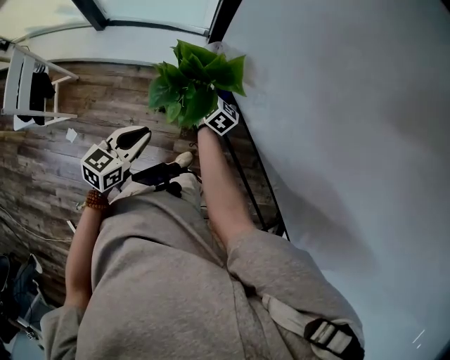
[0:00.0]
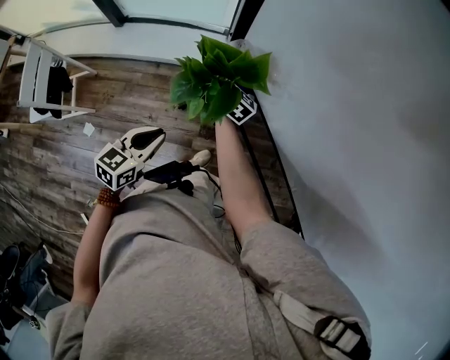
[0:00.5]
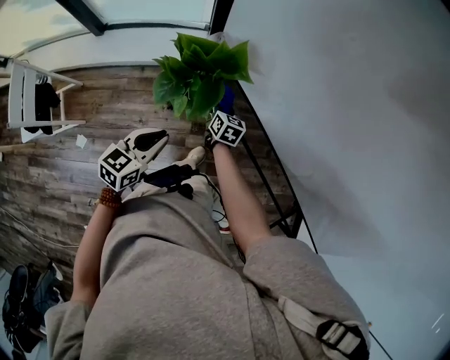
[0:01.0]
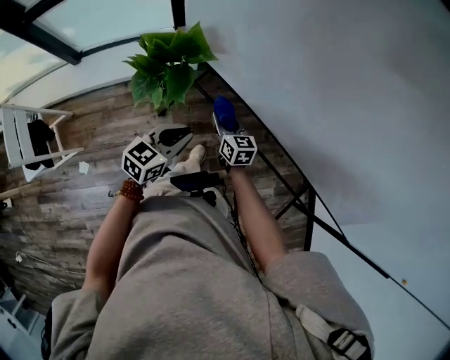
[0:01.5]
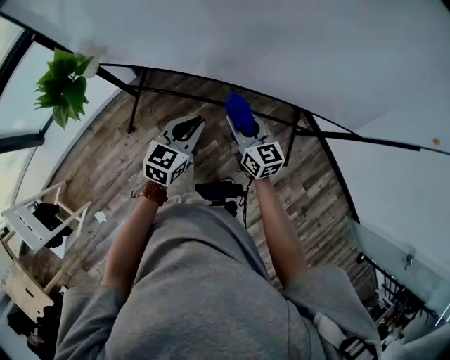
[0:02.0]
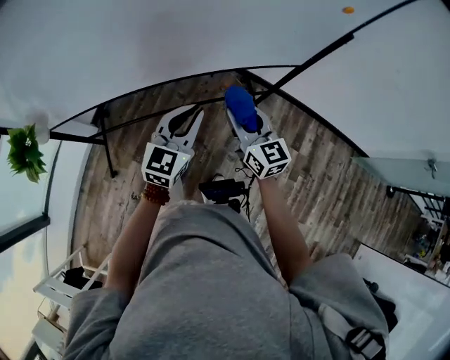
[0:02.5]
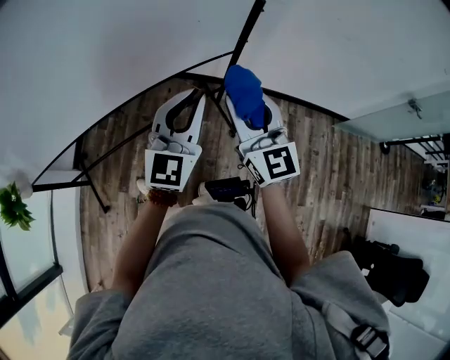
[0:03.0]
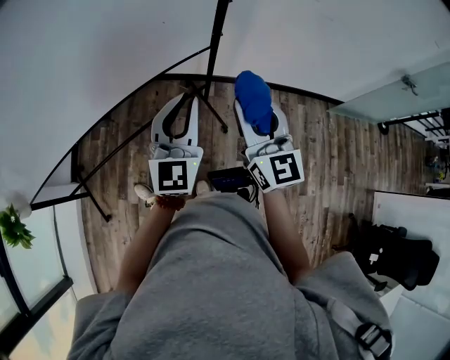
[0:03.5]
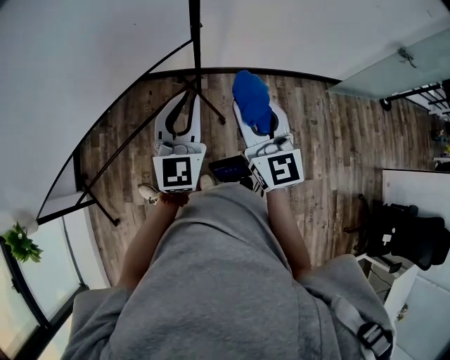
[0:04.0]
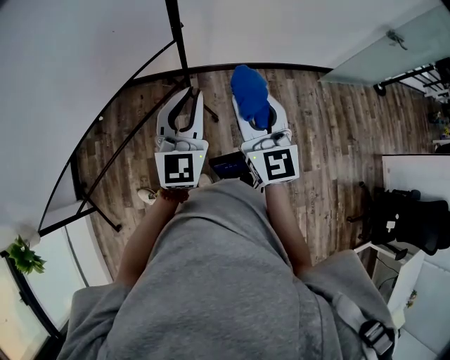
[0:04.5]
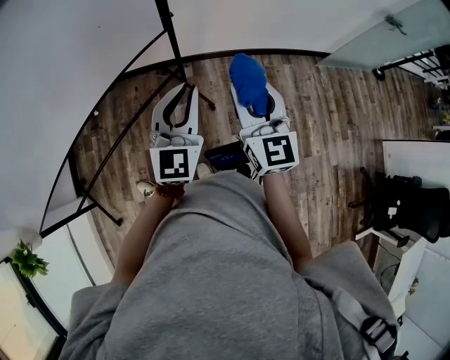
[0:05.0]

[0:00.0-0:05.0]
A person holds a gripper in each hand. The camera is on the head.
0:00.0 to 0:02.5: The two grippers travel together, roughly 60 cm. The right gripper rotates approximately 40 degrees. The left gripper rotates approximately 70 degrees.
0:02.5 to 0:05.0: The right gripper ends up roughly 40 cm from where it was, and turns by some 40 degrees; the left gripper ends up about 35 cm from where it was, and rotates roughly 20 degrees.

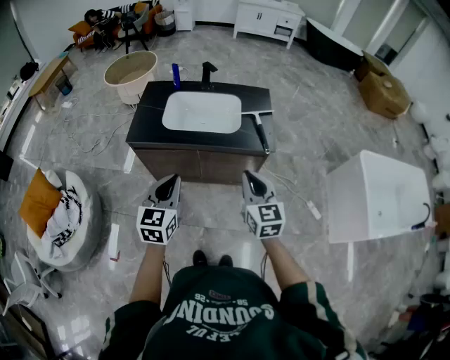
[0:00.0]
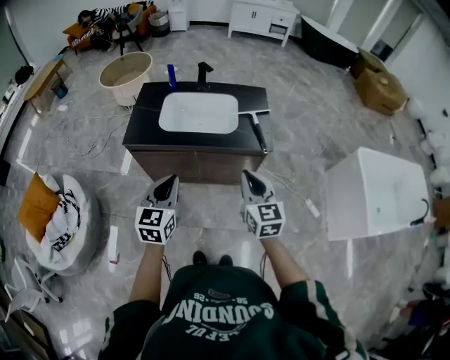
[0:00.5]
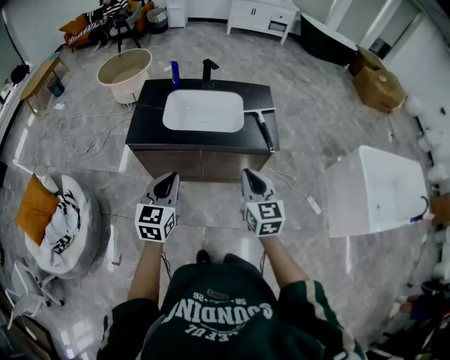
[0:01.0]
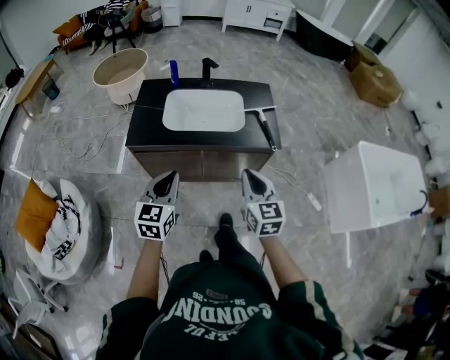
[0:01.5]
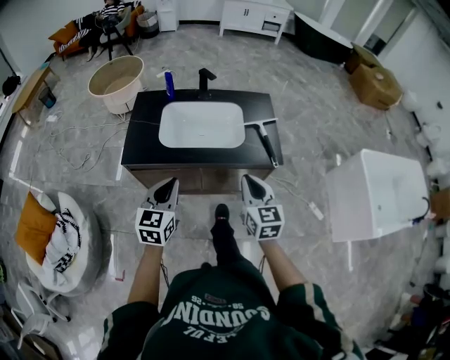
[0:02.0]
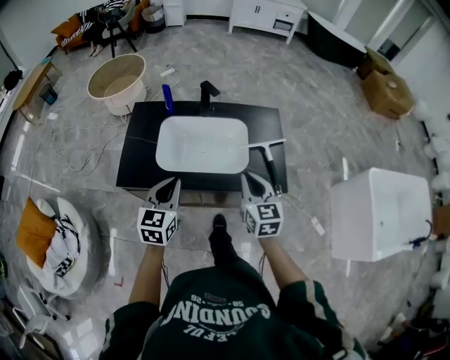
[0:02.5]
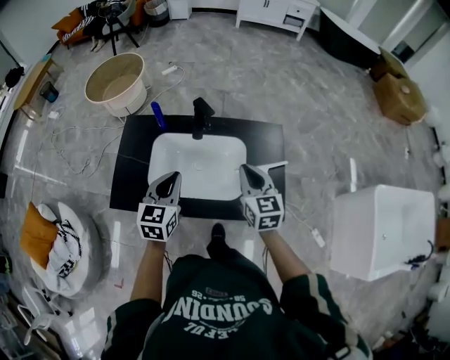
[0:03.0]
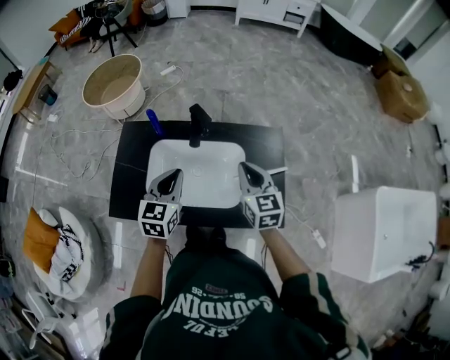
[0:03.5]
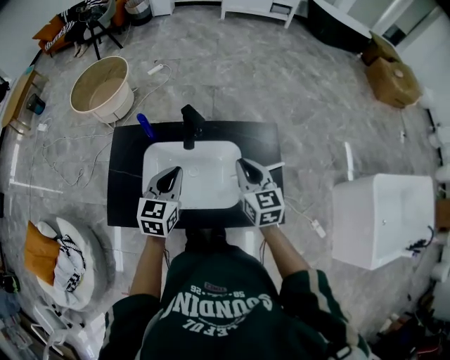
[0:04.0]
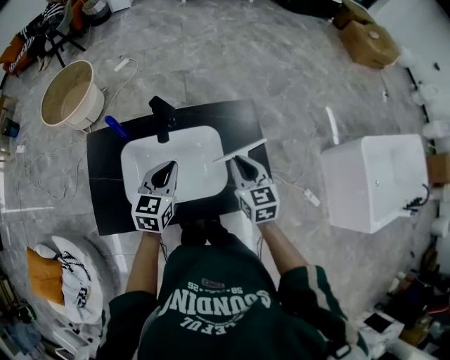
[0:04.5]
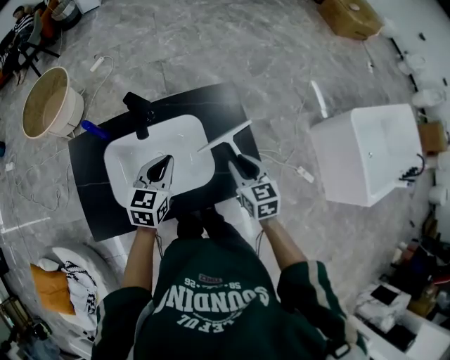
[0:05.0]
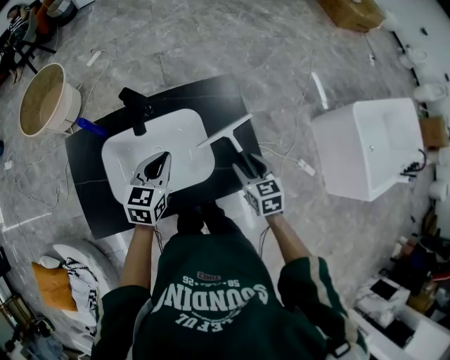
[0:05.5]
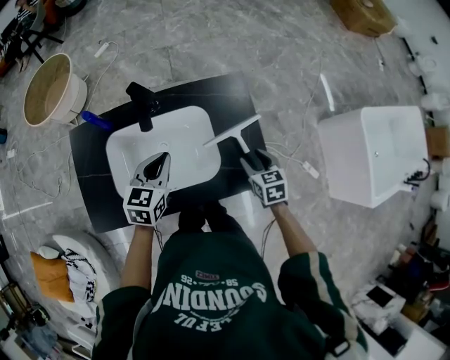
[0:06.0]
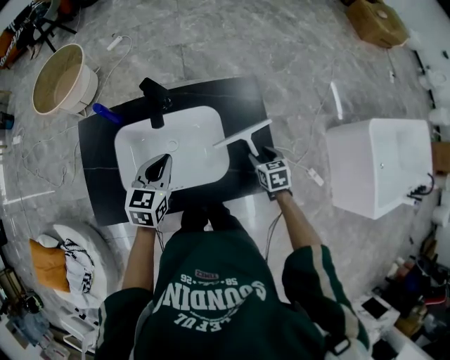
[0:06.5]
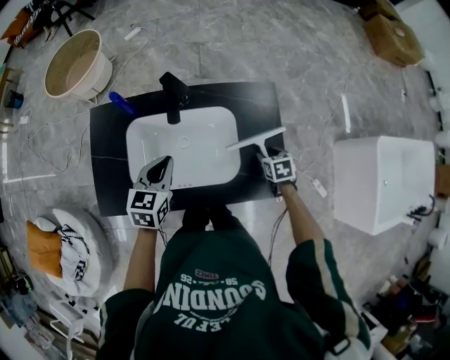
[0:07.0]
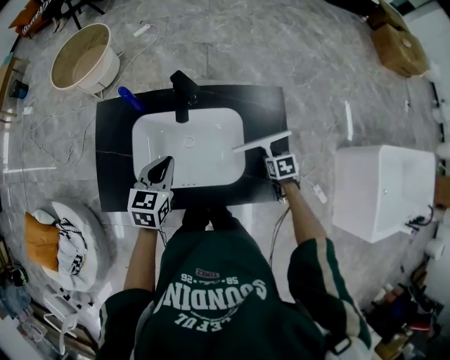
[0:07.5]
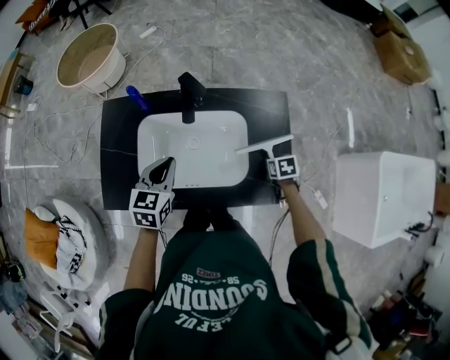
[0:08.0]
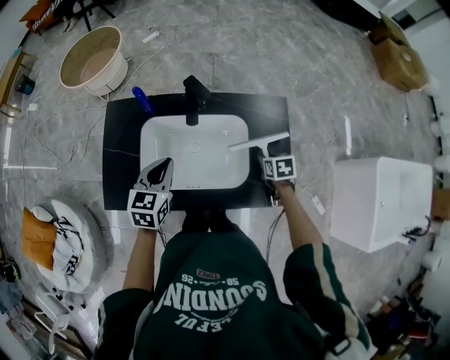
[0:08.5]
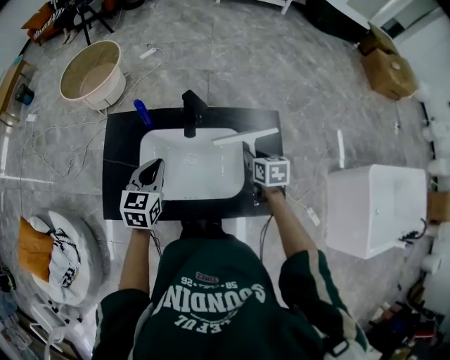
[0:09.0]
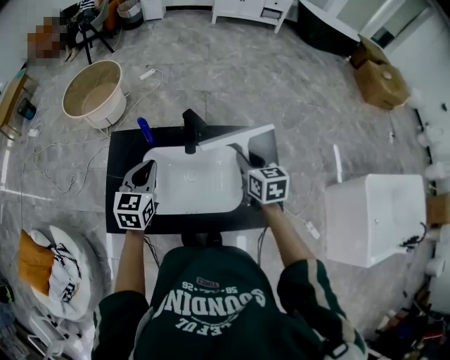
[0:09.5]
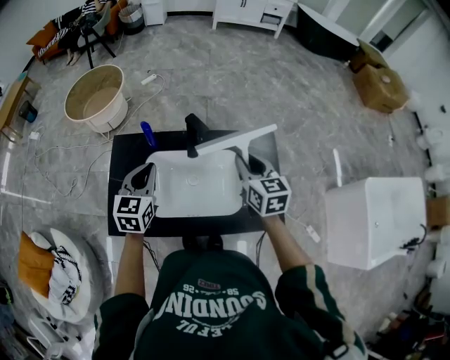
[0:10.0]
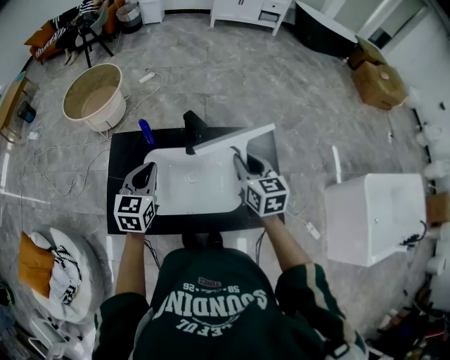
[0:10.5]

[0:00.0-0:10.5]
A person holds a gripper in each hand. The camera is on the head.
0:00.0 to 0:02.0: The left gripper shifts roughly 15 cm forward and to the left; the right gripper is displaced forward by roughly 10 cm.
0:02.0 to 0:04.0: Both grippers move forward, roughly 35 cm.
0:04.0 to 0:06.5: The right gripper heads downward and to the right, covering approximately 30 cm, tips its fingers downward by some 40 degrees, and opens up. The left gripper goes approximately 5 cm downward.
0:06.5 to 0:08.5: The left gripper heads to the left, covering approximately 10 cm. Meanwhile the right gripper travels to the left by approximately 5 cm, and closes.
0:08.5 to 0:10.5: The left gripper travels upward and to the left by approximately 10 cm, while the right gripper is displaced upward and to the left by roughly 30 cm, and tilts its fingers about 40 degrees upward.

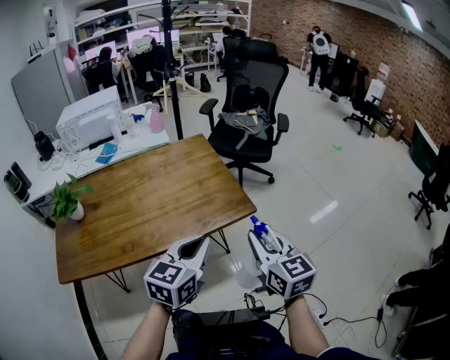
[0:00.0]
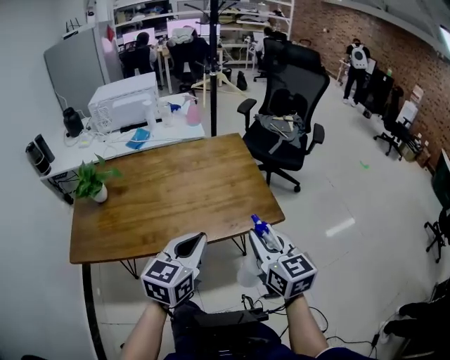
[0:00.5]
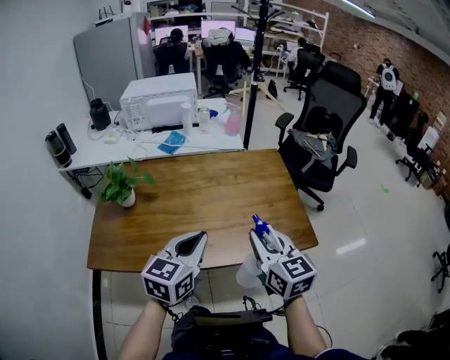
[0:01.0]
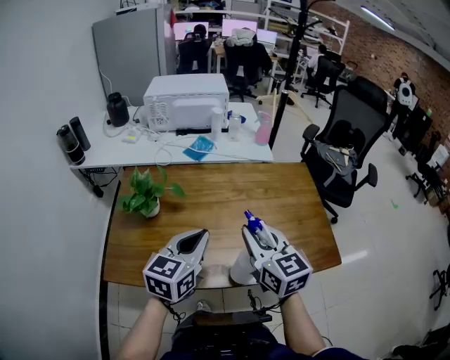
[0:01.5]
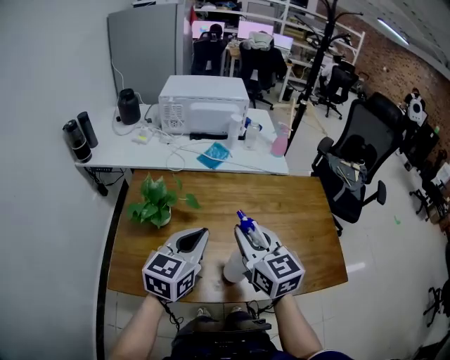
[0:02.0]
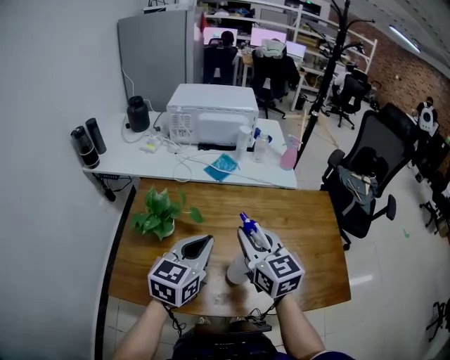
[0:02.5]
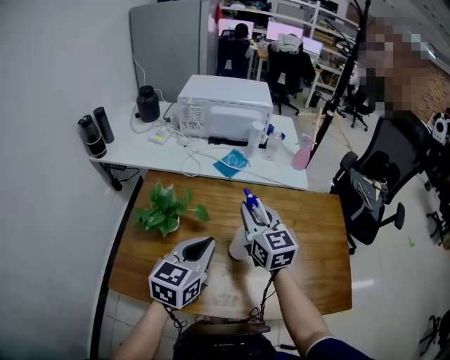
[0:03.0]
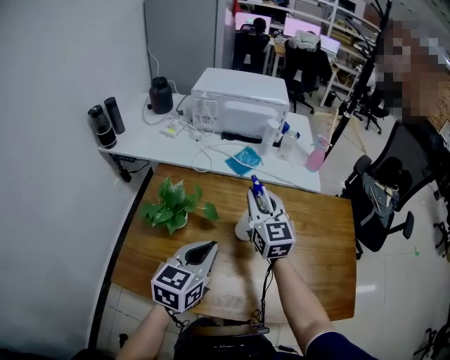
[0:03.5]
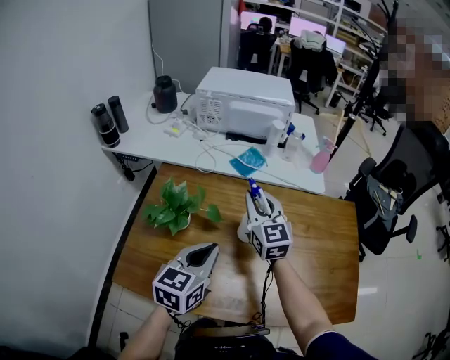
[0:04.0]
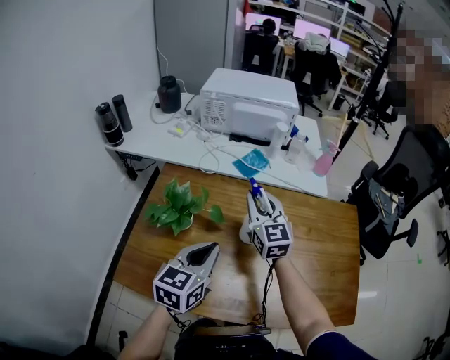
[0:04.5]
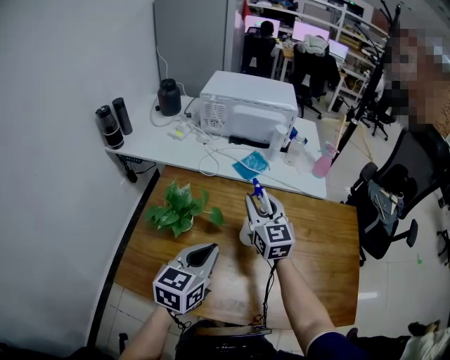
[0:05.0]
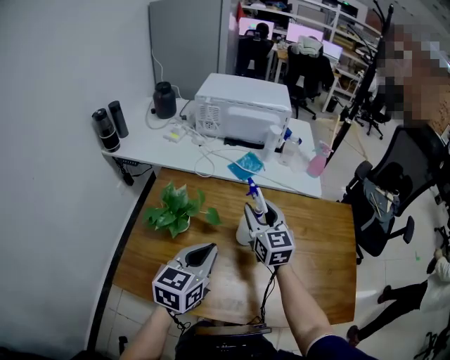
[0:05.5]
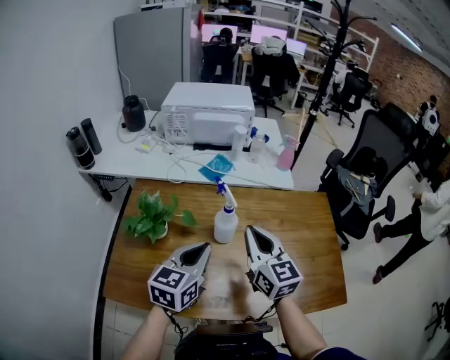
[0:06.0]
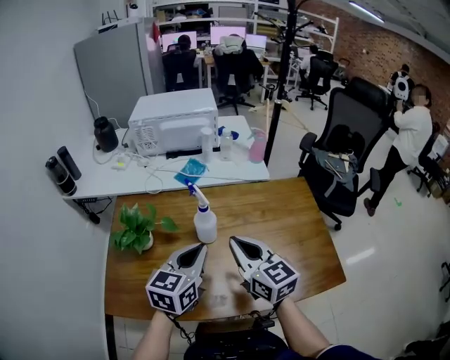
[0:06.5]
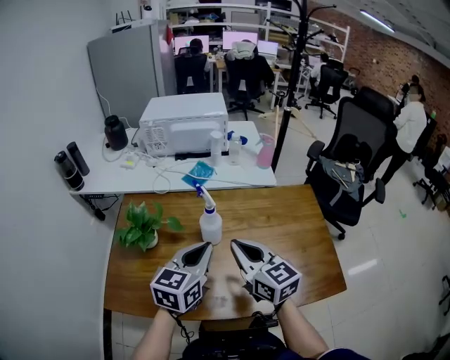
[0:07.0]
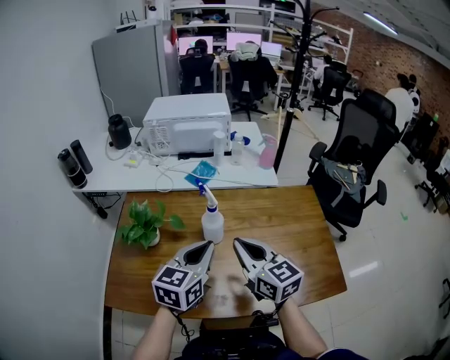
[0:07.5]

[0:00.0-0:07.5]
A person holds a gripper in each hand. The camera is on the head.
0:00.0 to 0:02.0: The two grippers travel together, to the left and forward, approximately 50 cm. The right gripper turns by some 30 degrees. The left gripper turns by approximately 20 degrees.
0:02.0 to 0:04.0: The left gripper shifts by roughly 5 cm; the right gripper heads forward, covering approximately 20 cm.
0:04.0 to 0:05.5: The right gripper opens its fingers.
0:05.5 to 0:07.5: The left gripper is displaced to the right by roughly 10 cm. Meanwhile the right gripper shifts approximately 15 cm backward, and closes.

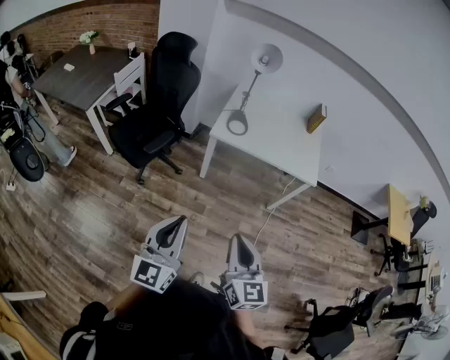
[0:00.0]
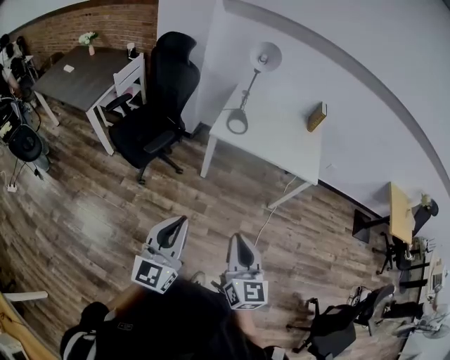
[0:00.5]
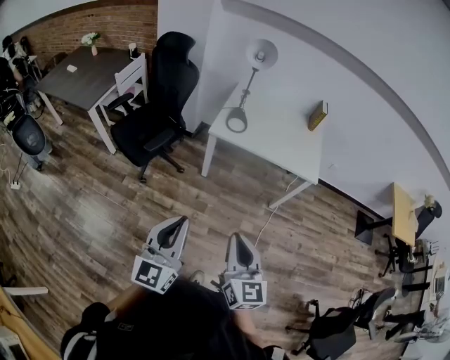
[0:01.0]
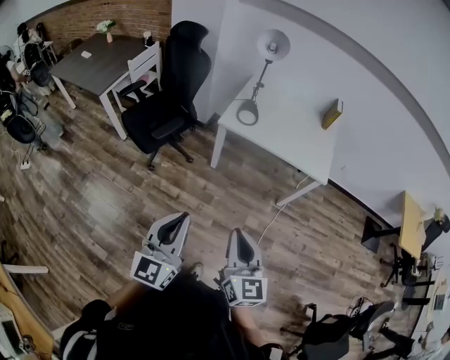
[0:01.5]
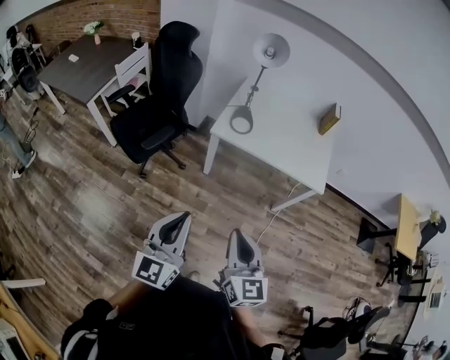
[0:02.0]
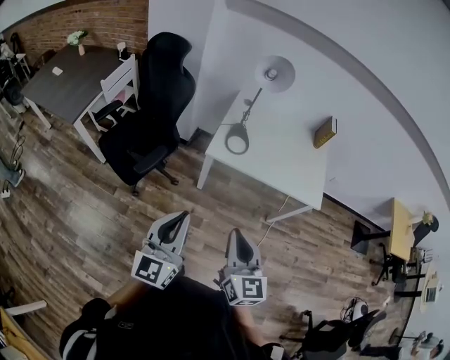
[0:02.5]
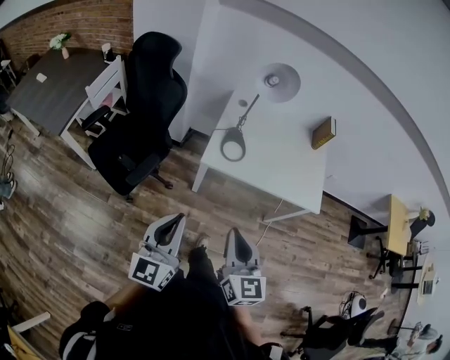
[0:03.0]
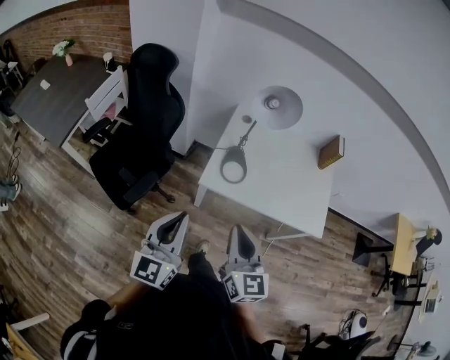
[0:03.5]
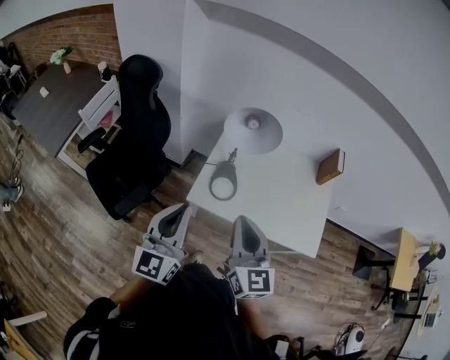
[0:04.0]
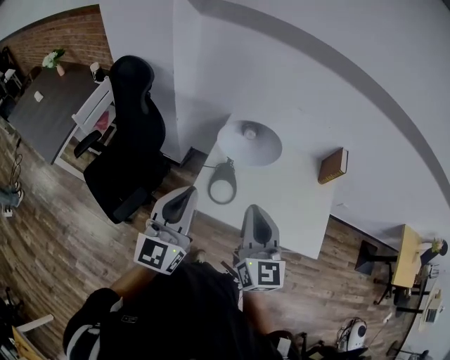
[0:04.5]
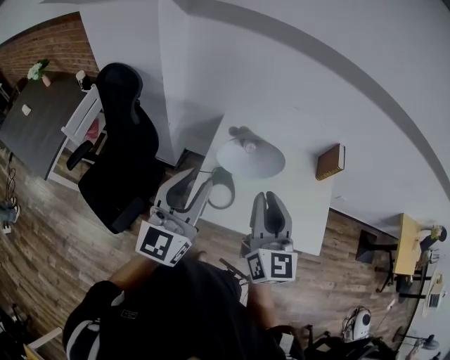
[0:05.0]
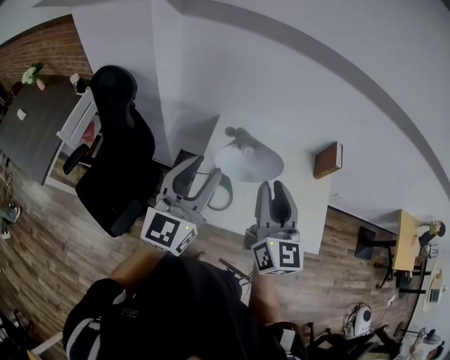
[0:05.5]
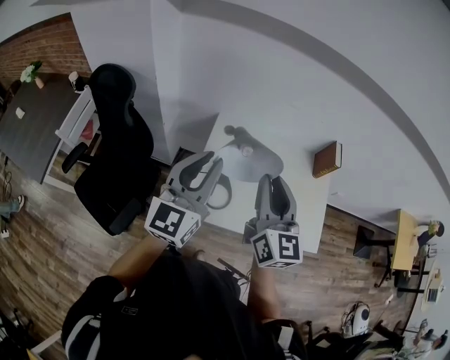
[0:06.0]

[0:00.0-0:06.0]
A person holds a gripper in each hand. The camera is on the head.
0:00.0 to 0:02.0: The left gripper shifts approximately 10 cm forward and to the right. The right gripper shifts some 10 cm forward.
0:02.0 to 0:04.0: The two grippers travel together, forward, roughly 40 cm.
0:04.0 to 0:06.0: The two grippers go approximately 20 cm forward.
